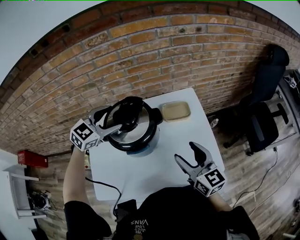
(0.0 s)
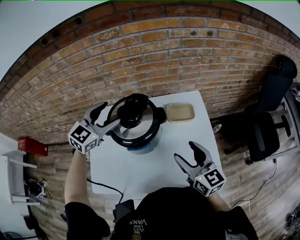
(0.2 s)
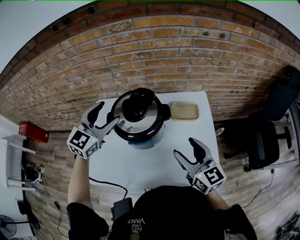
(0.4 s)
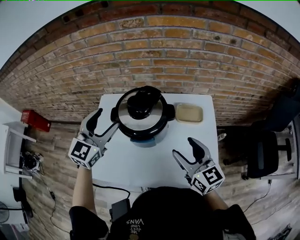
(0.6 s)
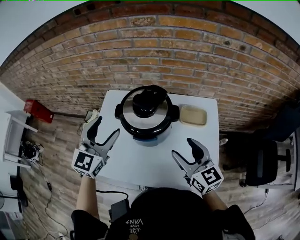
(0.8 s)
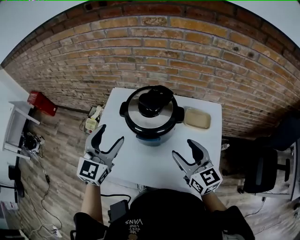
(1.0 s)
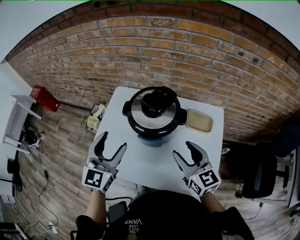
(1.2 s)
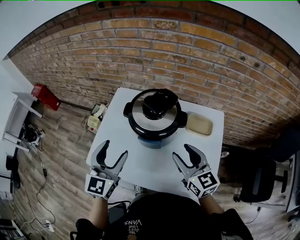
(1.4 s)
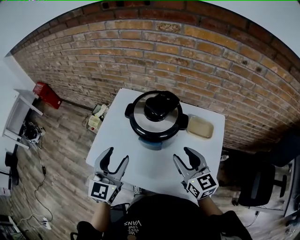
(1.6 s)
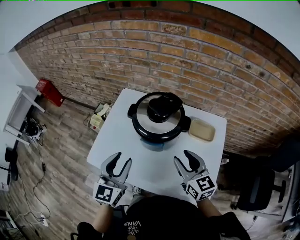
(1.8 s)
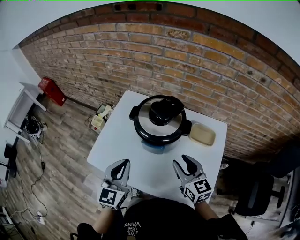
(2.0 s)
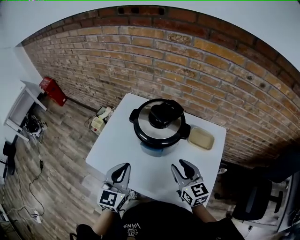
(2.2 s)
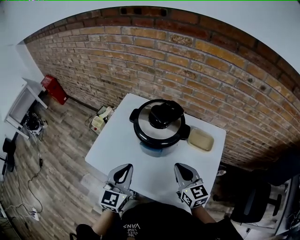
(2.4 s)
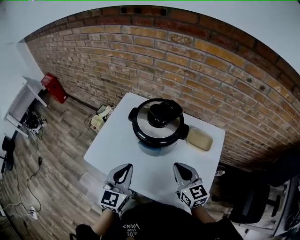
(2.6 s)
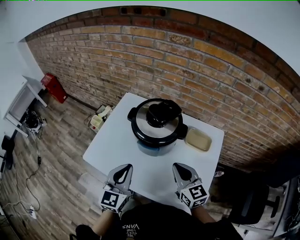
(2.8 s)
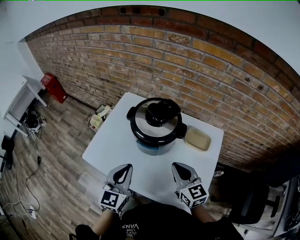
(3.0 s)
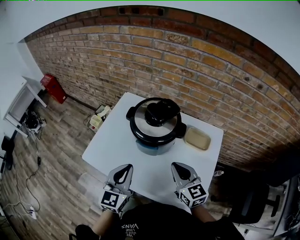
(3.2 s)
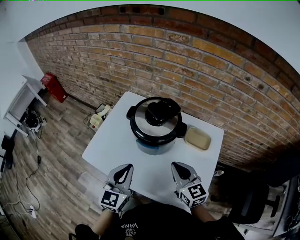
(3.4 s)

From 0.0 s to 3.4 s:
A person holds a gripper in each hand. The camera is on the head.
From 0.0 s to 1.6 s: The left gripper moves approximately 25 cm, and rotates about 60 degrees, while the right gripper moves some 5 cm, and swivels roughly 30 degrees.
From 1.6 s to 3.4 s: The left gripper moves to the right, approximately 5 cm, and closes up, while the right gripper closes.

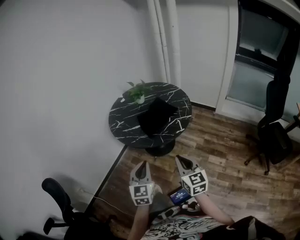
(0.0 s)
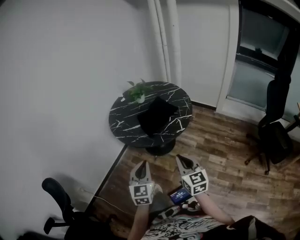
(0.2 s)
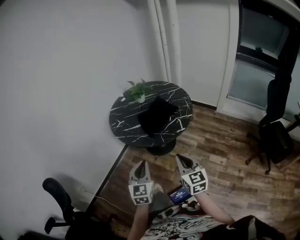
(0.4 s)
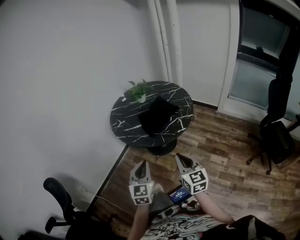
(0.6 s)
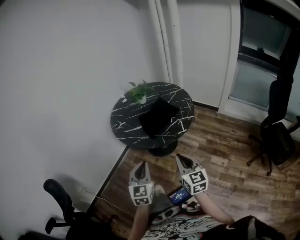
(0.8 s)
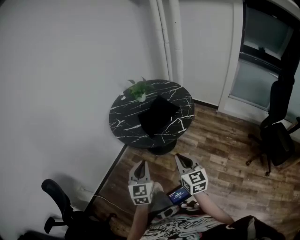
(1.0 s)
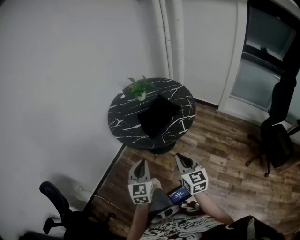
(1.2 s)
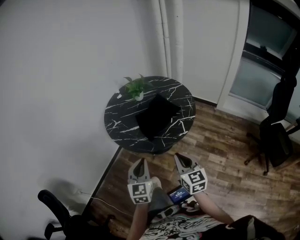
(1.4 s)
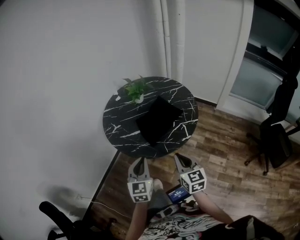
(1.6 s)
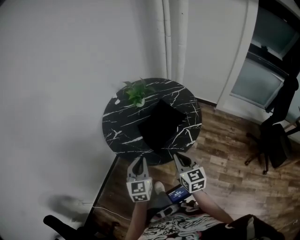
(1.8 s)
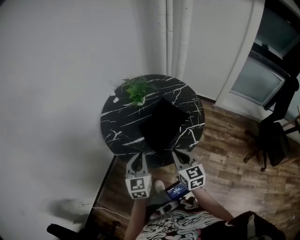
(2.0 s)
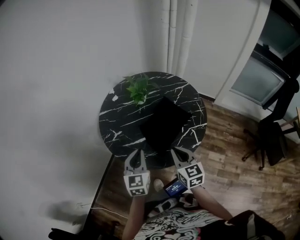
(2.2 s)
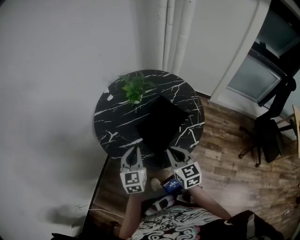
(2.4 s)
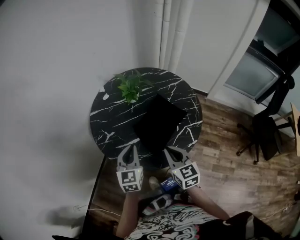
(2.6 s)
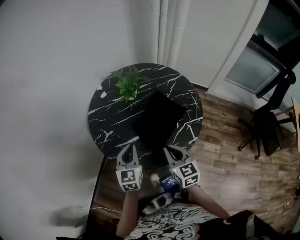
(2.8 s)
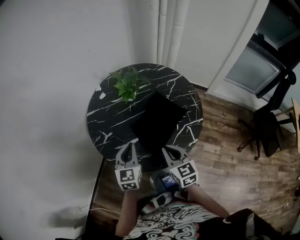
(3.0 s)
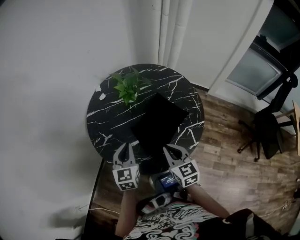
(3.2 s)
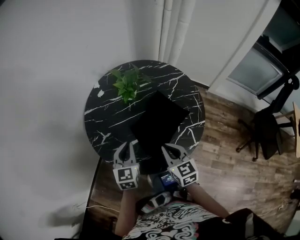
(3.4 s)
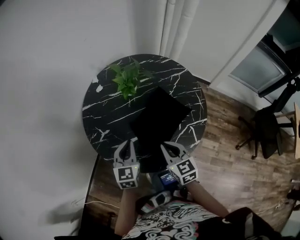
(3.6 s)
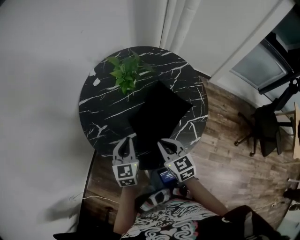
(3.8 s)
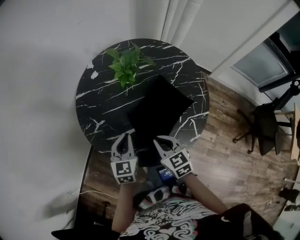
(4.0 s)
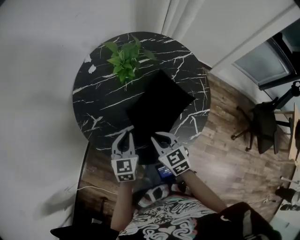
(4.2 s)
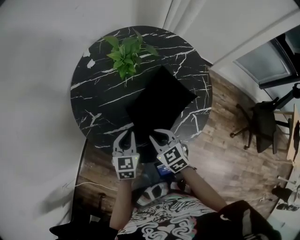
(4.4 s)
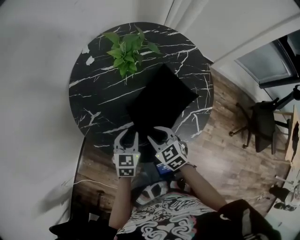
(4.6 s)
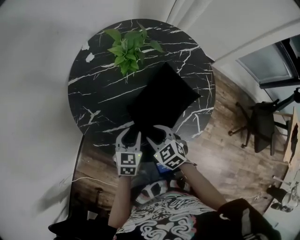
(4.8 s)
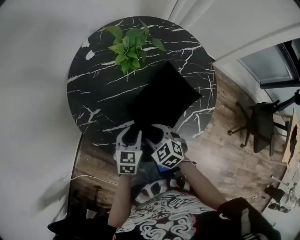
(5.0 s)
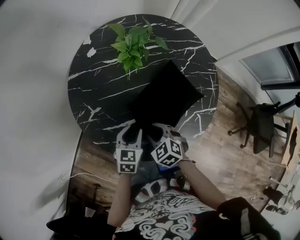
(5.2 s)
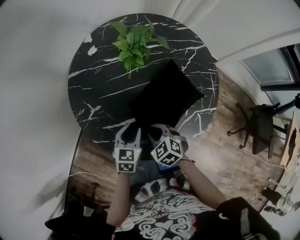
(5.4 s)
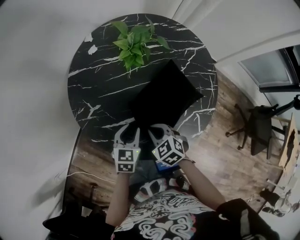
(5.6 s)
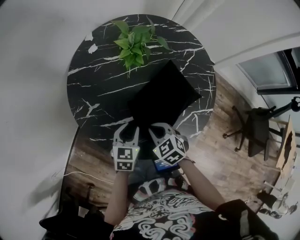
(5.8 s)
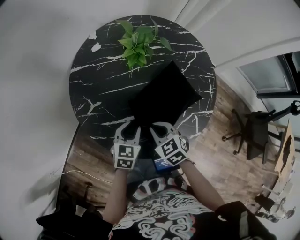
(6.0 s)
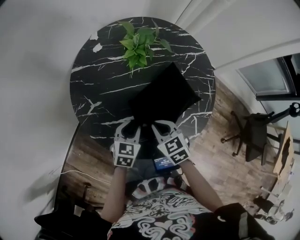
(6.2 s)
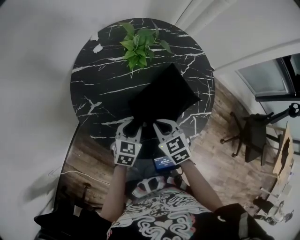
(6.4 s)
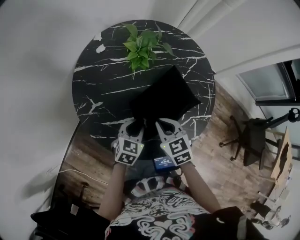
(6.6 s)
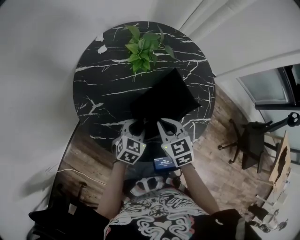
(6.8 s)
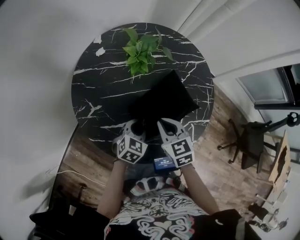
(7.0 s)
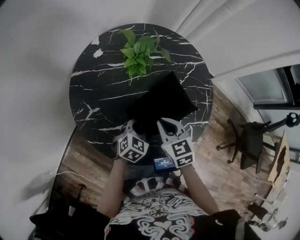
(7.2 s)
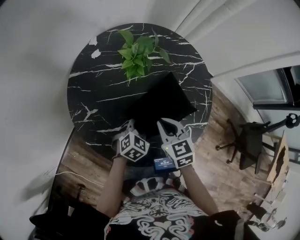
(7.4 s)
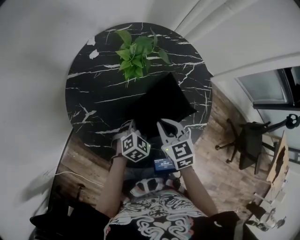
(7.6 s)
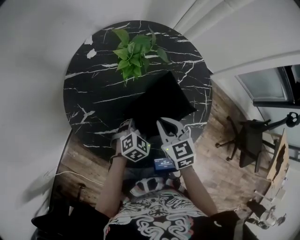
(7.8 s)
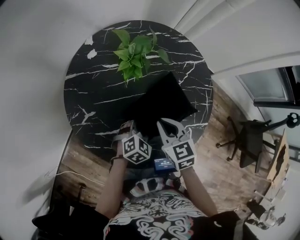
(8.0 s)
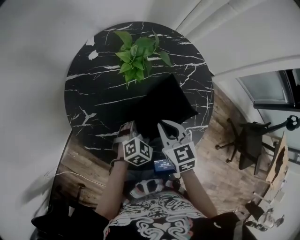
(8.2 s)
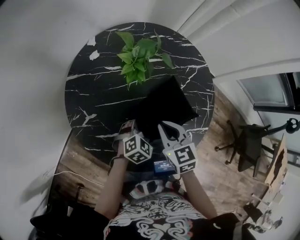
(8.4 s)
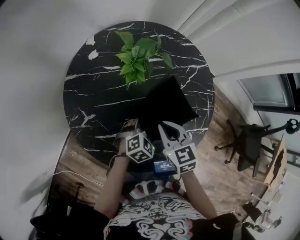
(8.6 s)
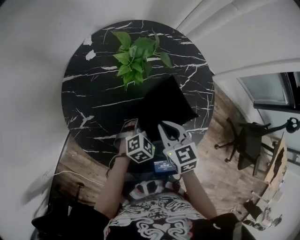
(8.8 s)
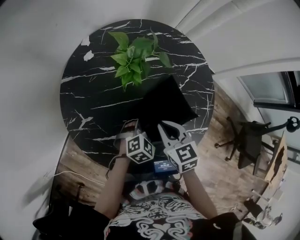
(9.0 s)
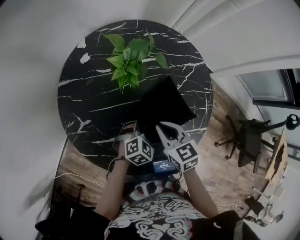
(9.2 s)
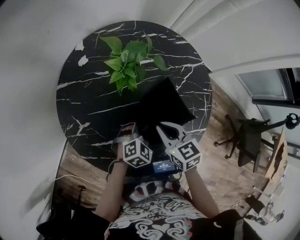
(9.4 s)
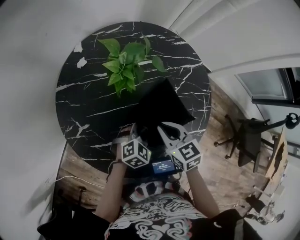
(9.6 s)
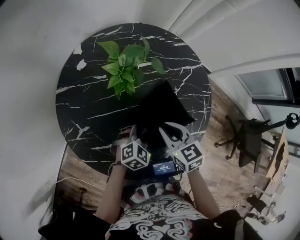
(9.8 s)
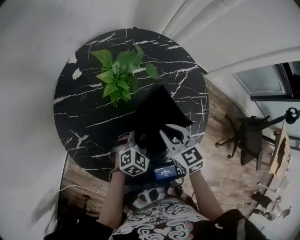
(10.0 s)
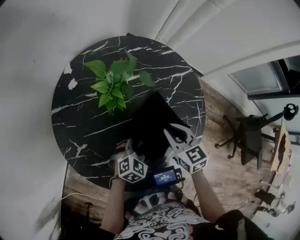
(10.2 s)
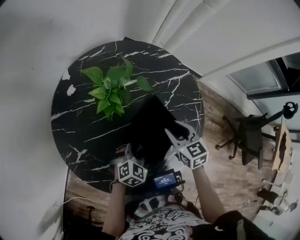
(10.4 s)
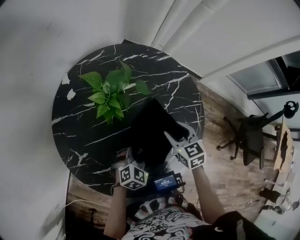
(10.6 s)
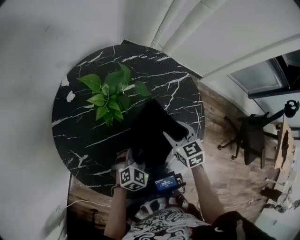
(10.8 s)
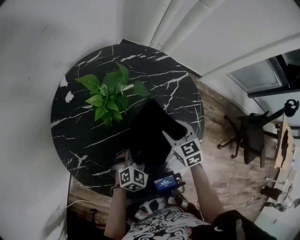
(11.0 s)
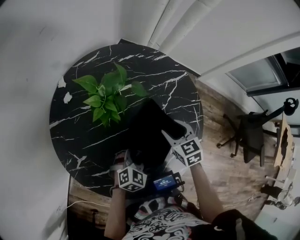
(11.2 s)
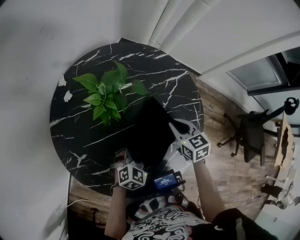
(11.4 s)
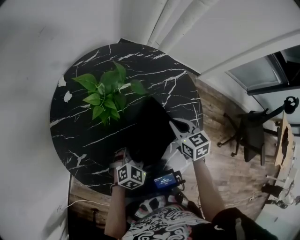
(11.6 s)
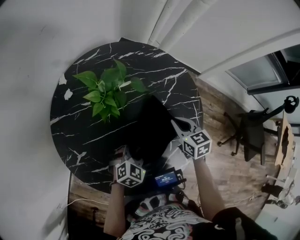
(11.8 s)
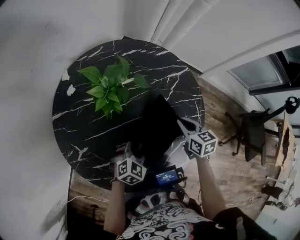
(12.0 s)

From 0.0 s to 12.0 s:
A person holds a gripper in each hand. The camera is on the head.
From 0.0 s to 1.6 s: The grippers both shift forward by roughly 15 cm.
From 1.6 s to 3.0 s: The right gripper moves forward and to the left, some 20 cm. Meanwhile the left gripper goes about 20 cm forward.
From 3.0 s to 4.4 s: The right gripper moves downward and forward, about 10 cm, and swivels some 30 degrees; the left gripper shifts some 10 cm downward.
From 4.4 s to 6.0 s: The right gripper opens, then closes again.
From 6.0 s to 7.6 s: The right gripper shifts some 10 cm forward and upward, while the left gripper moves to the right and forward, approximately 10 cm, and turns by about 30 degrees.
From 7.6 s to 9.0 s: The left gripper opens.
From 9.0 s to 10.4 s: The right gripper shifts roughly 10 cm to the right and forward, and opens its fingers.
From 10.4 s to 12.0 s: The right gripper is displaced to the right by some 5 cm, and closes up.

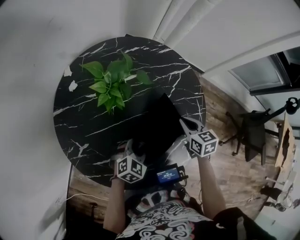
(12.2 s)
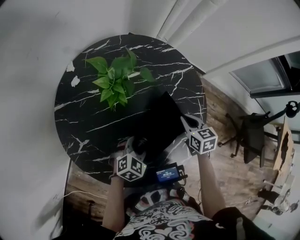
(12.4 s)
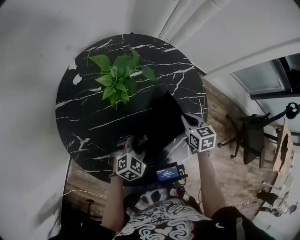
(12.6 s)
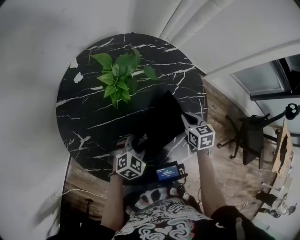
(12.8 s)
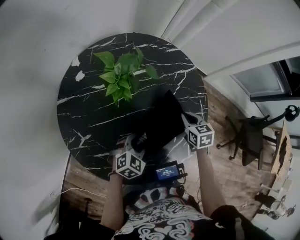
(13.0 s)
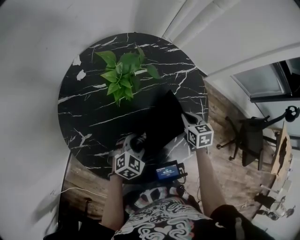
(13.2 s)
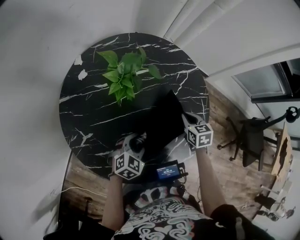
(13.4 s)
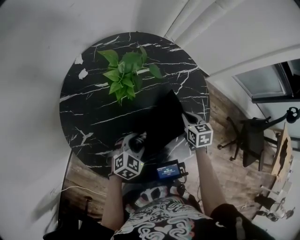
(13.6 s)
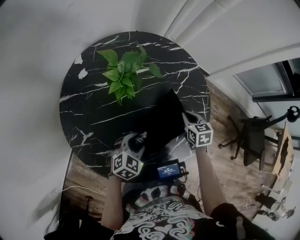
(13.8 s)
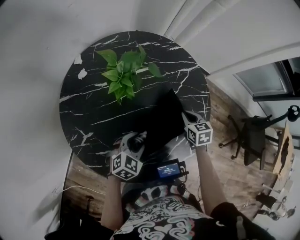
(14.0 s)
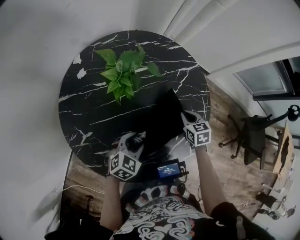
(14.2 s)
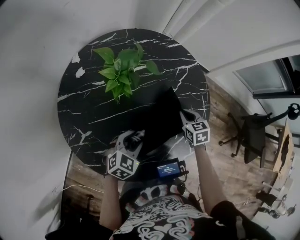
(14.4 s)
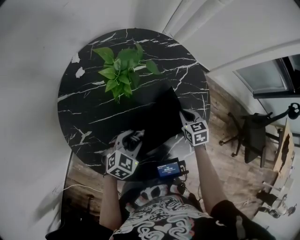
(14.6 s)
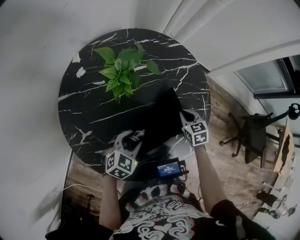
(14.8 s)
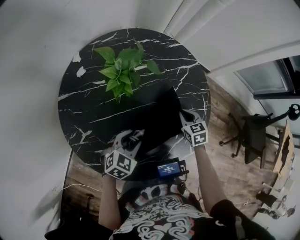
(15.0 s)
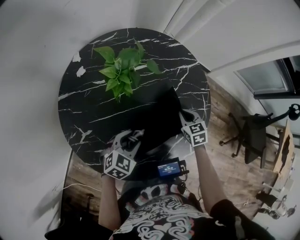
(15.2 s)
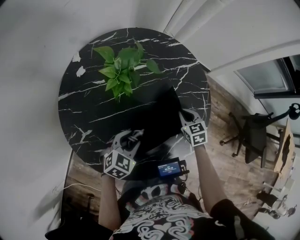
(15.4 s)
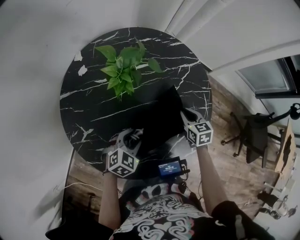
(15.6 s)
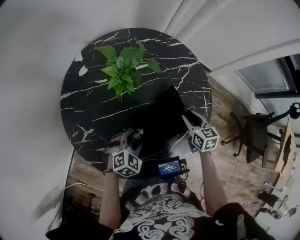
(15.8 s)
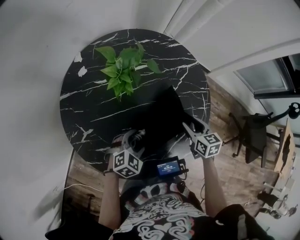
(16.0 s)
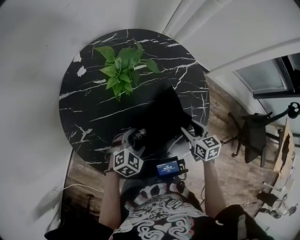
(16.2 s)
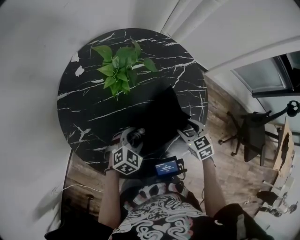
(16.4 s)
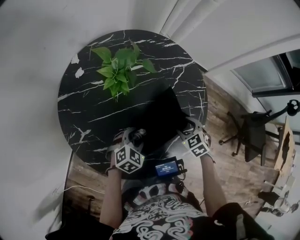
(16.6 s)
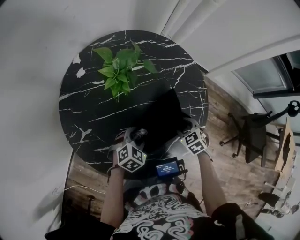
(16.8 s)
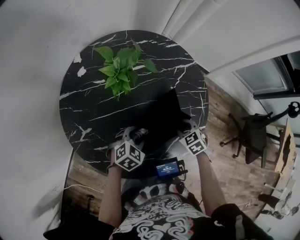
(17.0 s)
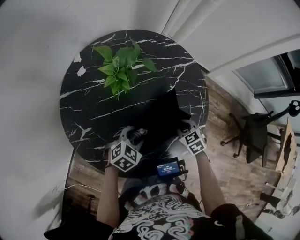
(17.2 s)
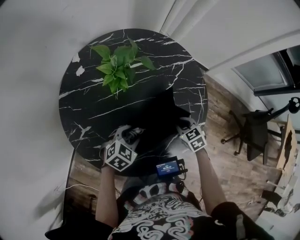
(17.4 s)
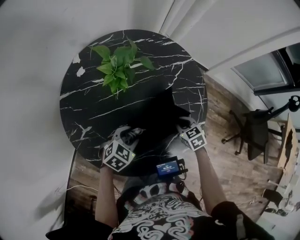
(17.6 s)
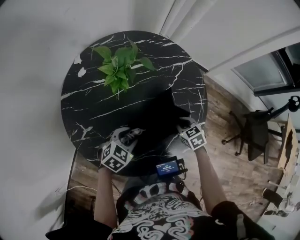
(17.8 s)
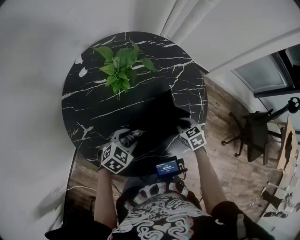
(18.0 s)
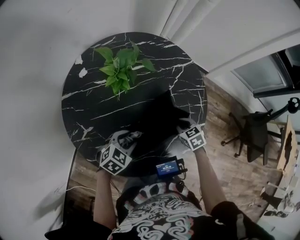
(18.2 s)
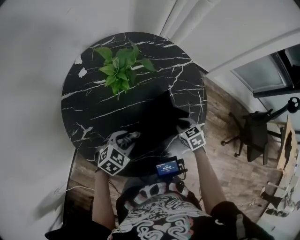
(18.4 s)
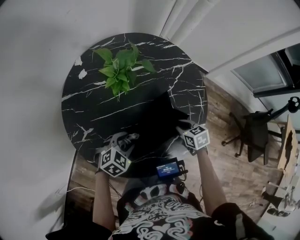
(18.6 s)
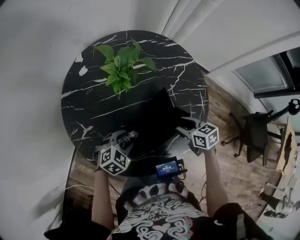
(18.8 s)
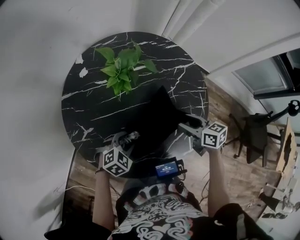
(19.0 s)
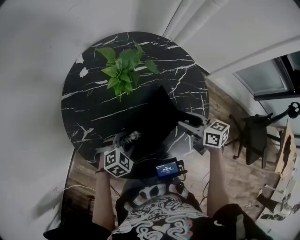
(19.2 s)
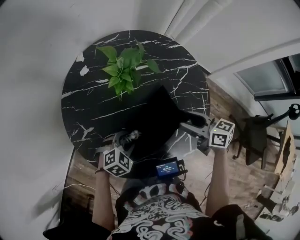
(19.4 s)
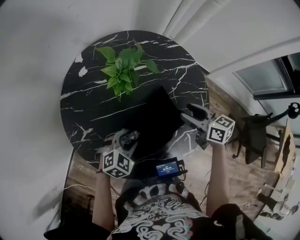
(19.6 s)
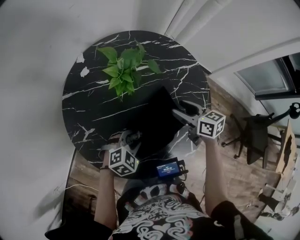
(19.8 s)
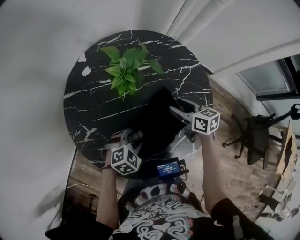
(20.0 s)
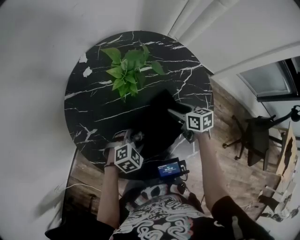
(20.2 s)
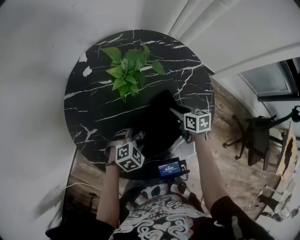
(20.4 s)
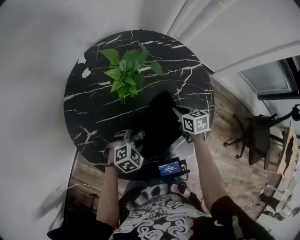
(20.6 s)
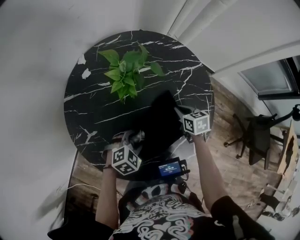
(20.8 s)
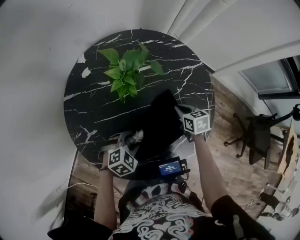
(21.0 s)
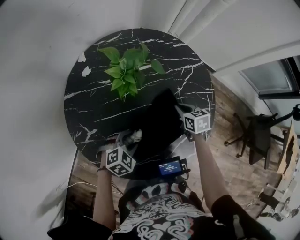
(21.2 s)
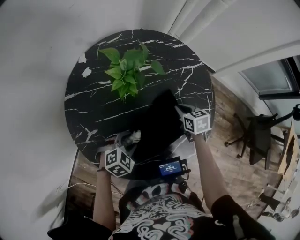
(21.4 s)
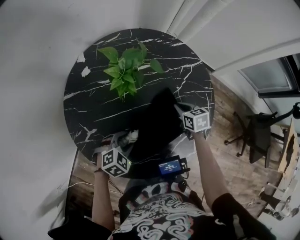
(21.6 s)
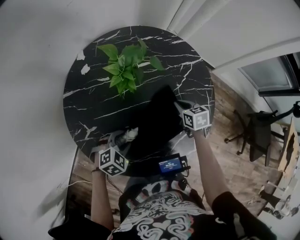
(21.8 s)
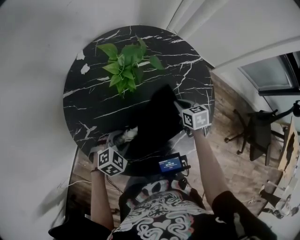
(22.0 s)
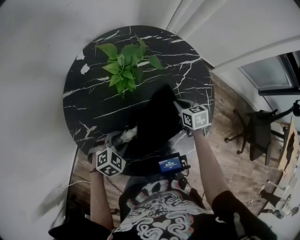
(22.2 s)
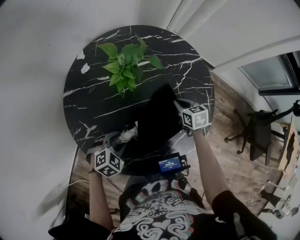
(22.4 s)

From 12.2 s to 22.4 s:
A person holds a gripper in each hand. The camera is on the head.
From 12.2 s to 13.6 s: The grippers stay close to where they were, moving slightly.
From 13.6 s to 15.2 s: The grippers move only a little.
From 15.2 s to 16.6 s: The right gripper shifts roughly 5 cm backward, and opens up.
From 16.6 s to 18.0 s: The left gripper moves about 5 cm; the right gripper closes up.
From 18.0 s to 19.4 s: The right gripper heads upward, covering roughly 15 cm, tips its fingers upward by approximately 30 degrees, and opens its fingers.
From 19.4 s to 21.0 s: The right gripper is displaced downward and forward by some 15 cm, swivels approximately 30 degrees, and closes.
From 21.0 s to 22.4 s: The left gripper moves to the left, some 5 cm.
